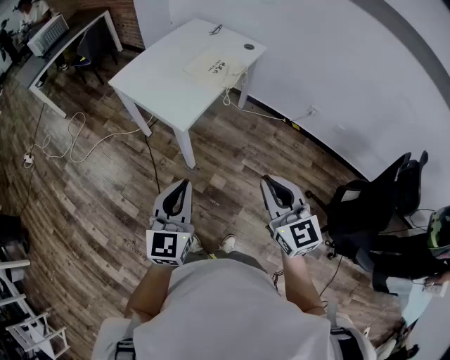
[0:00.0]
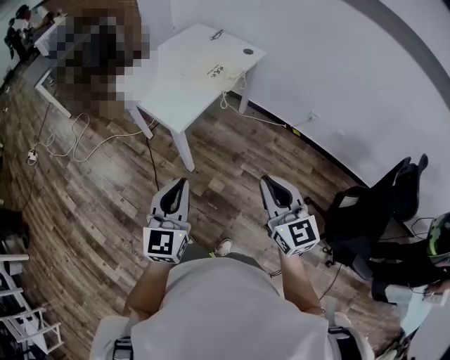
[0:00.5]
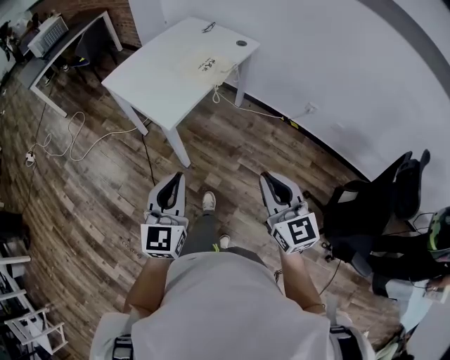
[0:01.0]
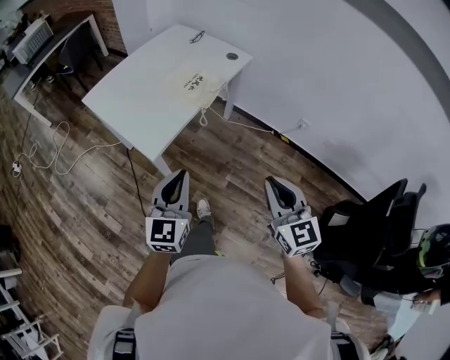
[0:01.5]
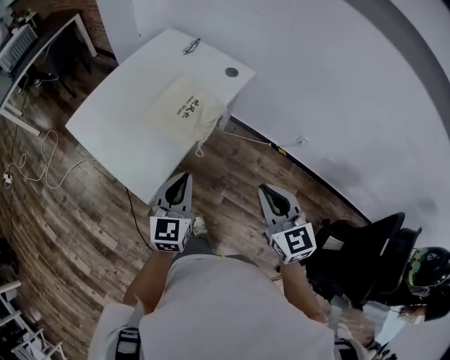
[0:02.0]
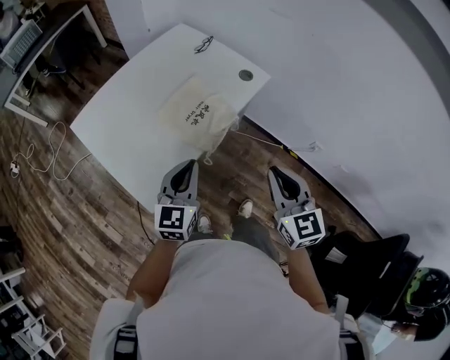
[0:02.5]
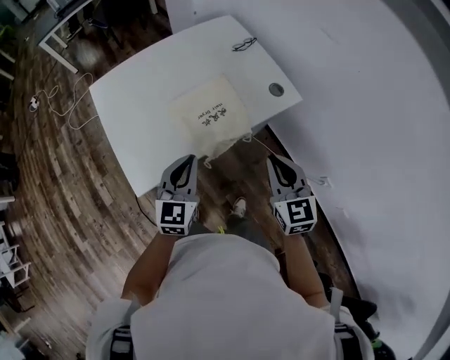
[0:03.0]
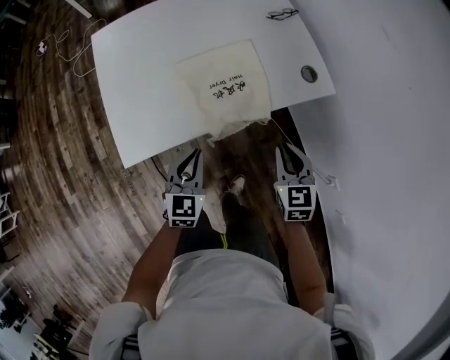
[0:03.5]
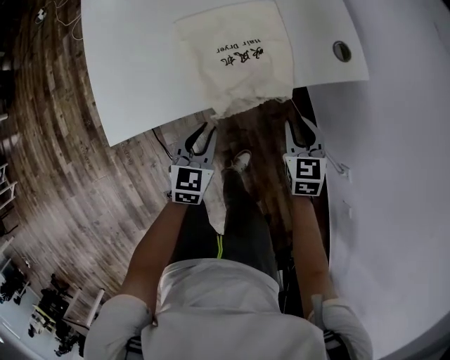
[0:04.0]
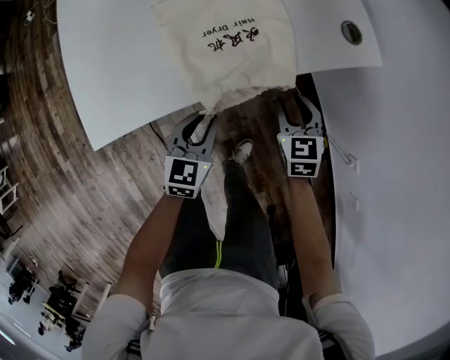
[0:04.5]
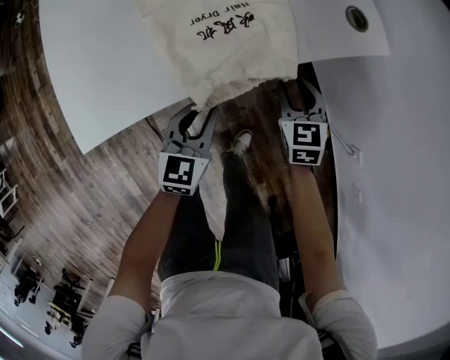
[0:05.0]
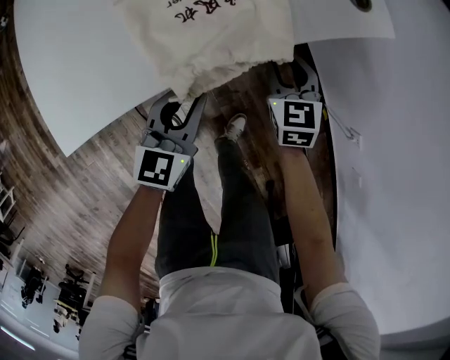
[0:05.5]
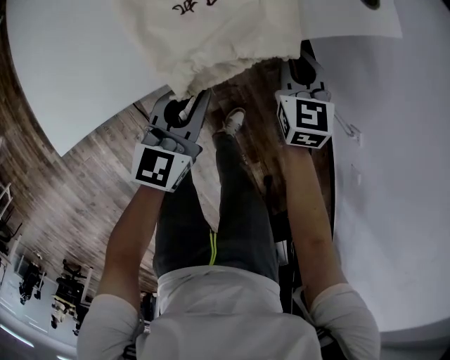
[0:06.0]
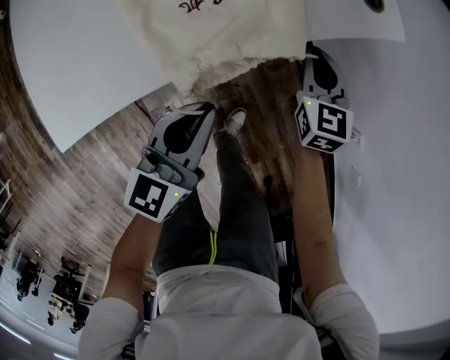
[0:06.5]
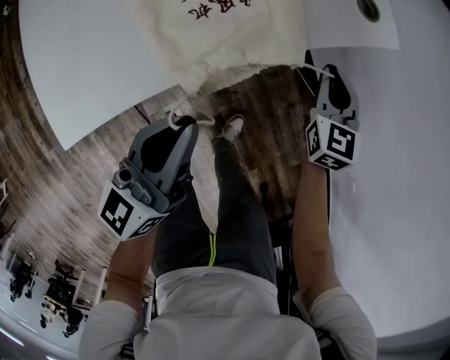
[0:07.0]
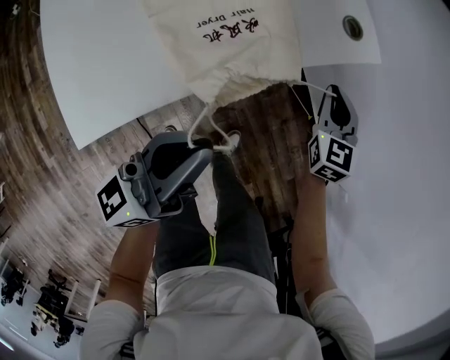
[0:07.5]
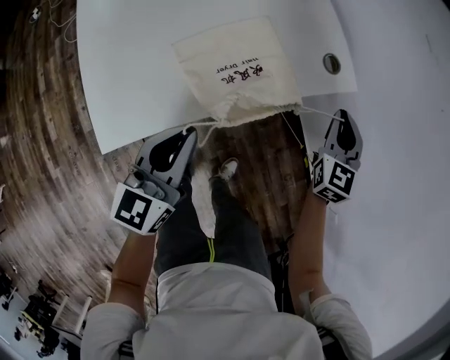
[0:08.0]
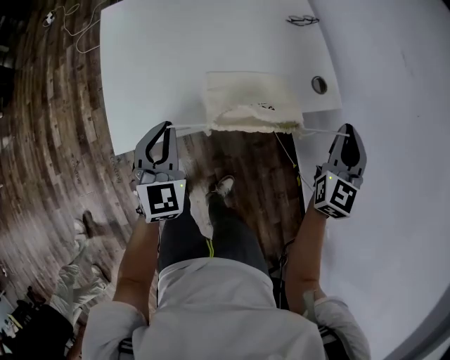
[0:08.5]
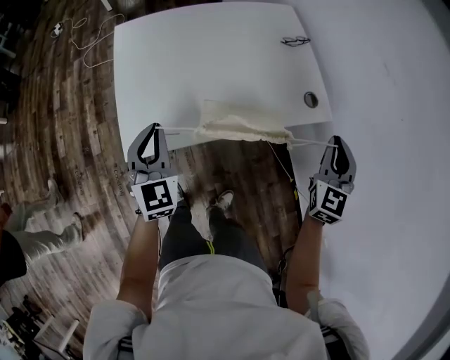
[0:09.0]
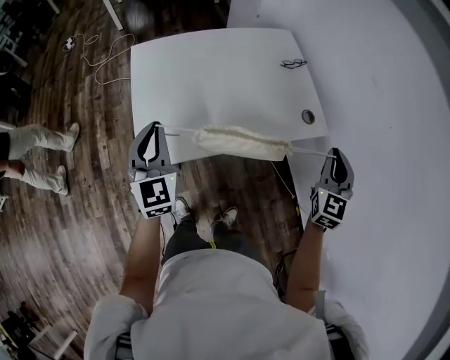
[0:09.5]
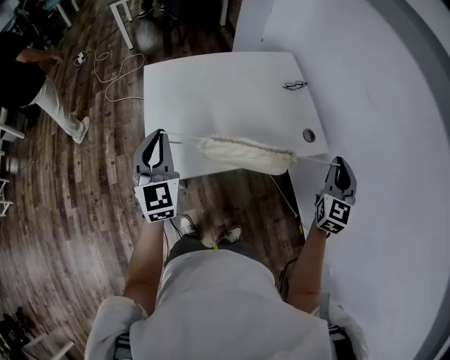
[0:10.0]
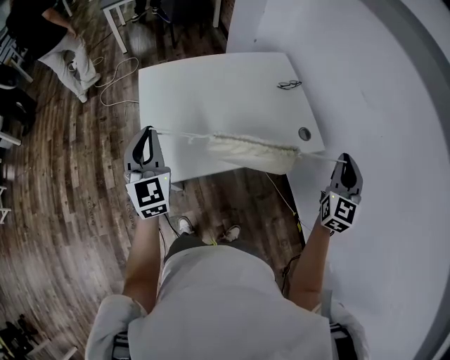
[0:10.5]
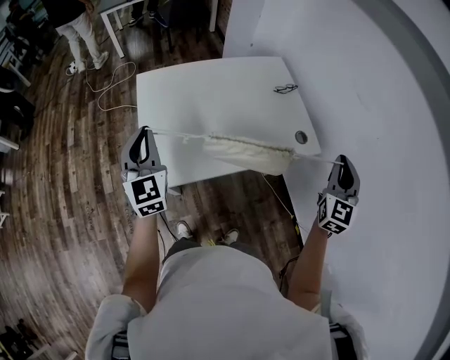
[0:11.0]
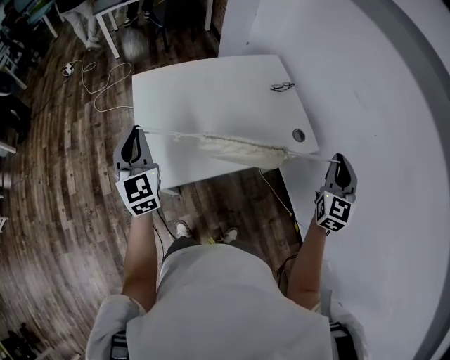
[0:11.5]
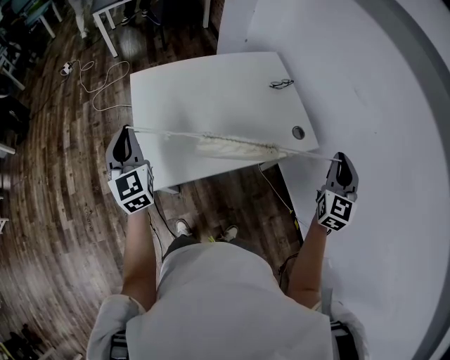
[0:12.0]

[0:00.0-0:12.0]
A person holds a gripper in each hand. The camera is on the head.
0:00.0 to 0:02.0: The left gripper moves forward, roughly 40 cm, while the right gripper is displaced forward and to the right by about 40 cm.
0:02.0 to 0:04.0: The right gripper ends up roughly 50 cm from where it was, and changes its angle by approximately 30 degrees; the left gripper goes some 30 cm downward, and turns by roughly 40 degrees.
0:04.0 to 0:06.0: The left gripper shifts by roughly 10 cm; the right gripper goes roughly 15 cm downward and forward.
0:06.0 to 0:08.0: The two grippers go about 25 cm upward. The right gripper rotates approximately 20 degrees.
0:08.0 to 0:10.0: The left gripper is displaced upward and to the left by about 30 cm, and rotates roughly 50 degrees. The right gripper shifts approximately 25 cm upward.
0:10.0 to 0:12.0: The left gripper shifts approximately 5 cm to the left.

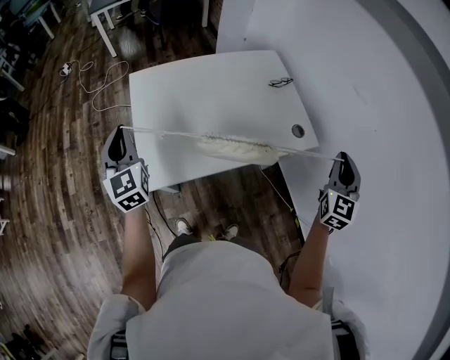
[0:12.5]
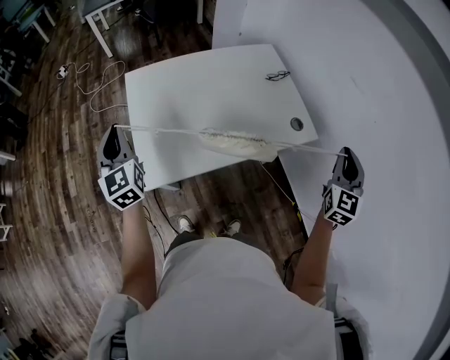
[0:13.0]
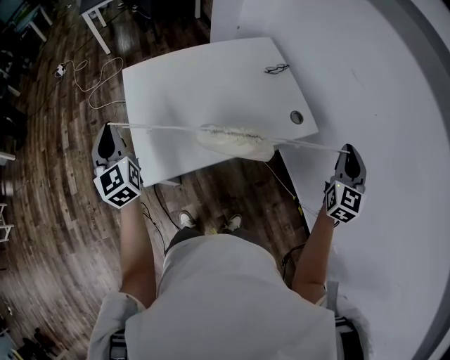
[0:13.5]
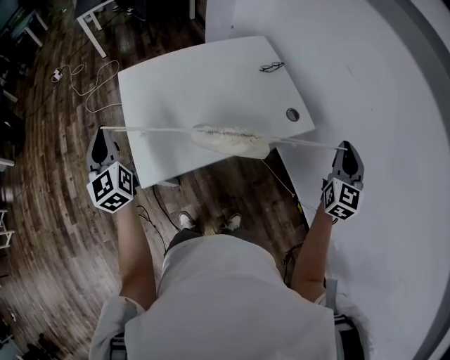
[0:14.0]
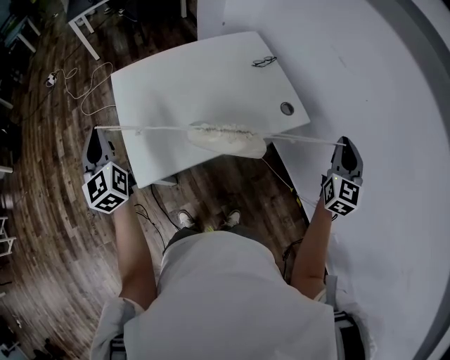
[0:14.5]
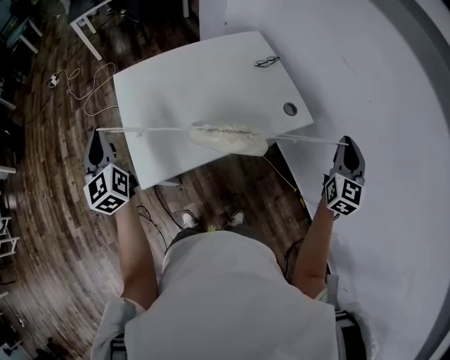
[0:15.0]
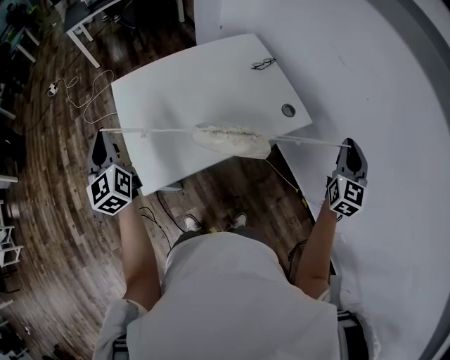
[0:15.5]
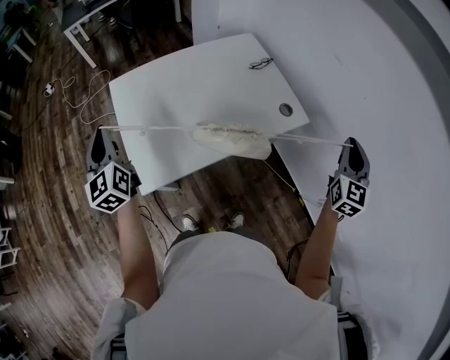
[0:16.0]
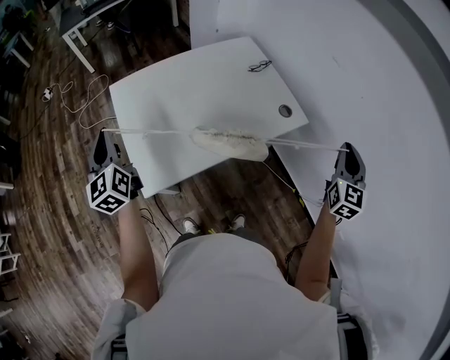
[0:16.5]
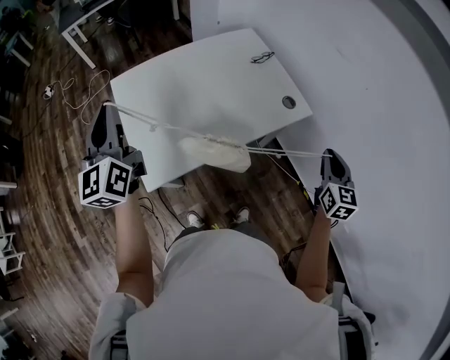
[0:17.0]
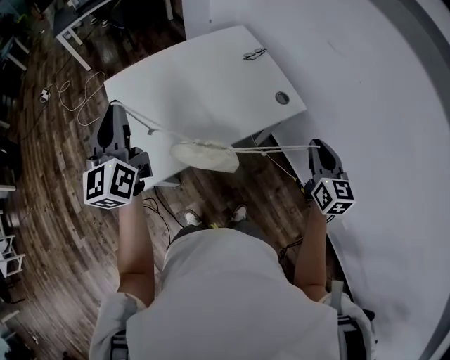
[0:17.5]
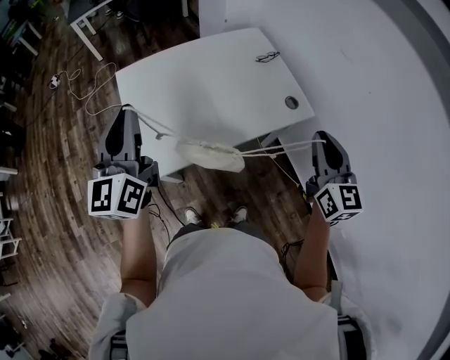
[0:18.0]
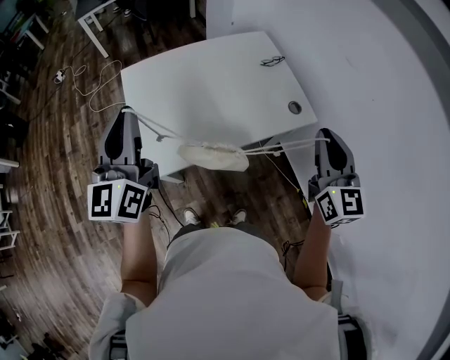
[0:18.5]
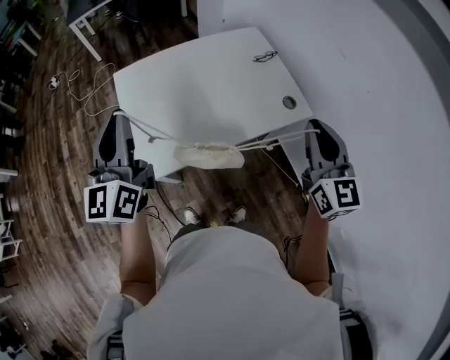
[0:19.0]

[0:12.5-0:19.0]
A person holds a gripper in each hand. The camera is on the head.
0:12.5 to 0:14.5: The right gripper shifts by some 5 cm.
0:14.5 to 0:17.0: The right gripper is displaced downward and backward by roughly 10 cm. The left gripper travels upward and to the right by about 10 cm, and turns by roughly 20 degrees.
0:17.0 to 0:19.0: The left gripper heads backward and to the right, covering approximately 10 cm. Meanwhile the right gripper moves upward and to the left, some 15 cm, and changes its angle by some 30 degrees.

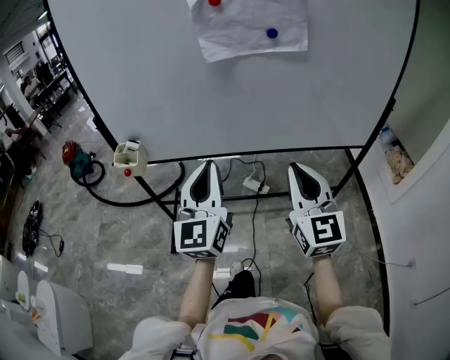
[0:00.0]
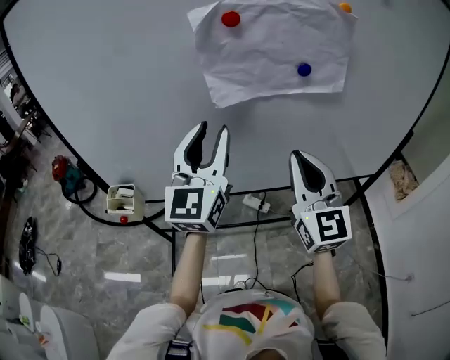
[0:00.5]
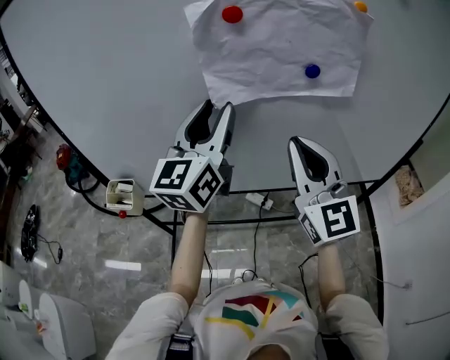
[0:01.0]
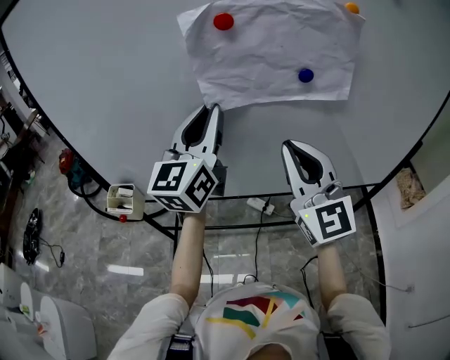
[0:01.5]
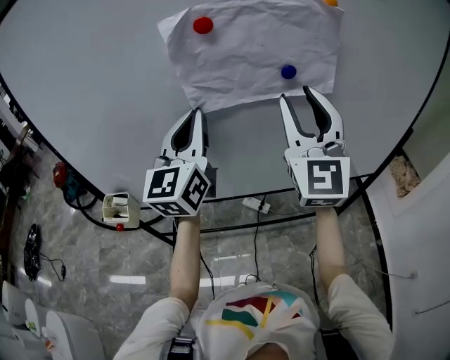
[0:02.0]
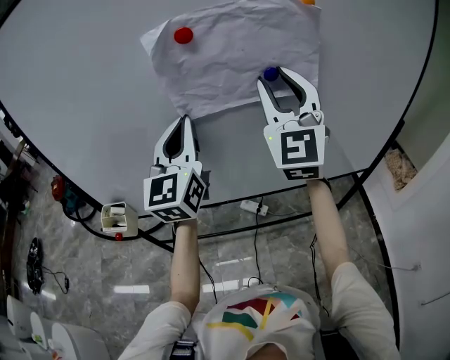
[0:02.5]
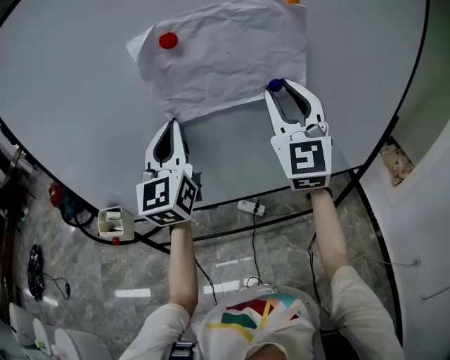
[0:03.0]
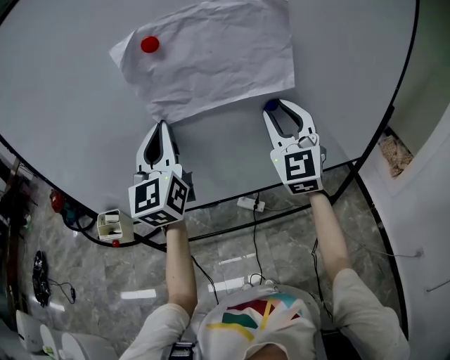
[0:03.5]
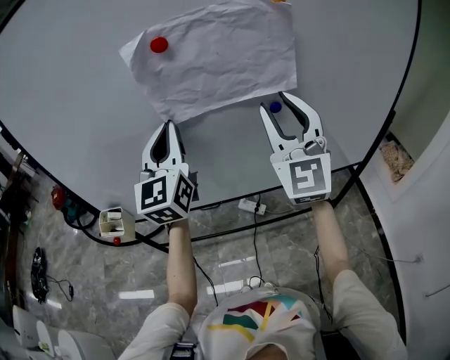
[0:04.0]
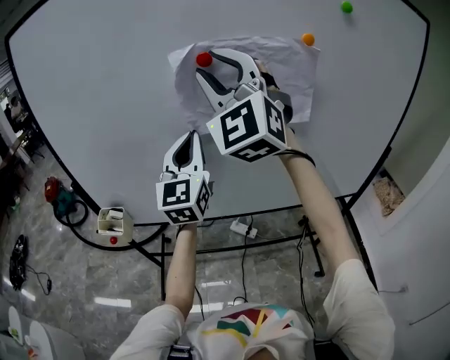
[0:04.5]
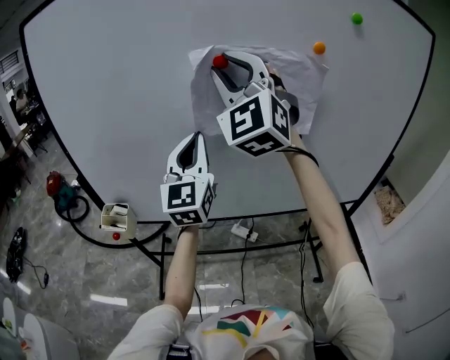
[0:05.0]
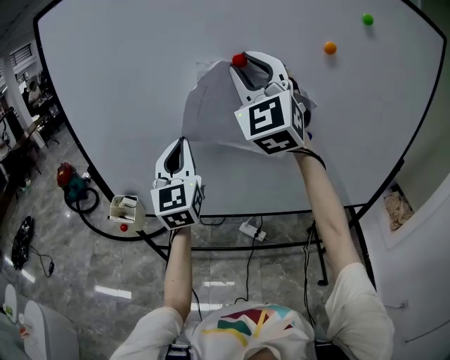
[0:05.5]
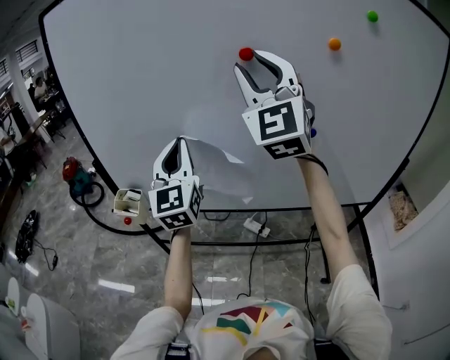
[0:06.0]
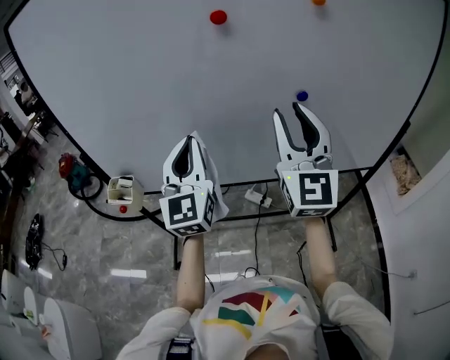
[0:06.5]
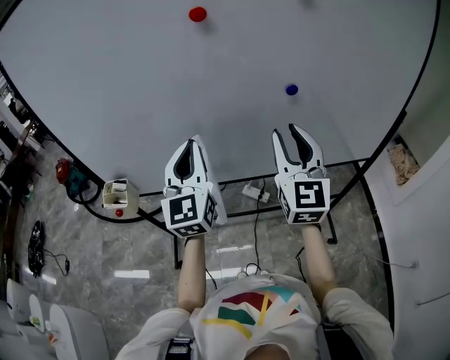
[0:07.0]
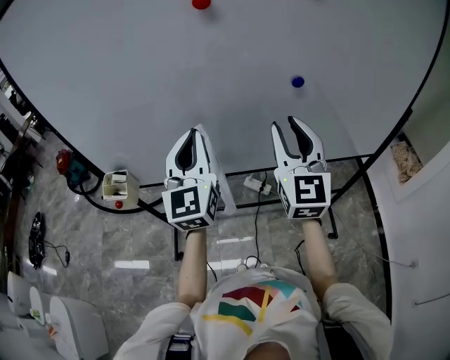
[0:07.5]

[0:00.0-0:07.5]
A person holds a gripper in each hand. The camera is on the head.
0:00.0 to 0:02.0: The grippers both shift forward and upward by some 30 cm. The left gripper opens, then closes once more, while the right gripper swivels some 20 degrees, and opens up.
0:02.0 to 0:04.0: The right gripper moves some 5 cm downward and comes back.
0:04.0 to 0:05.5: The right gripper is displaced to the left and upward by approximately 20 cm. The left gripper shifts about 10 cm to the left.
0:05.5 to 0:07.5: The left gripper heads to the right and downward, covering some 10 cm; the right gripper is displaced downward and to the right by some 30 cm, and rotates about 40 degrees.

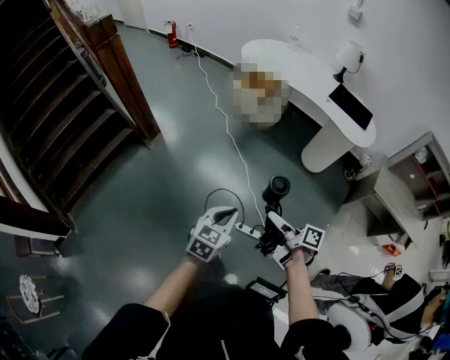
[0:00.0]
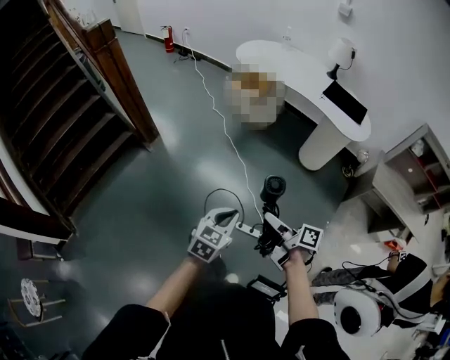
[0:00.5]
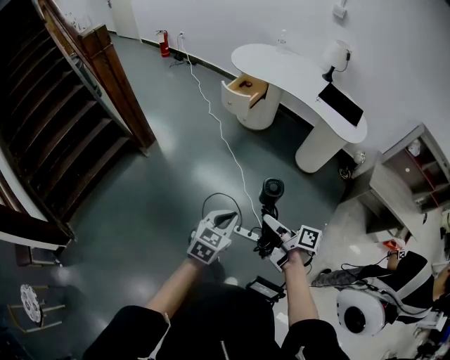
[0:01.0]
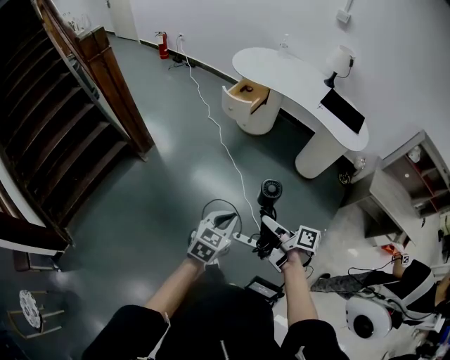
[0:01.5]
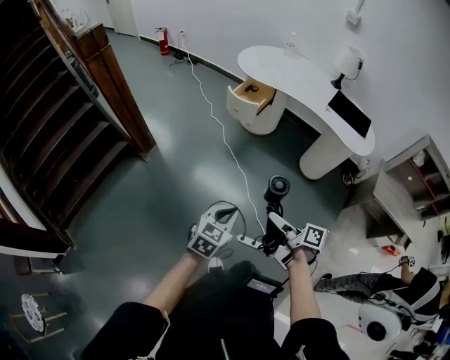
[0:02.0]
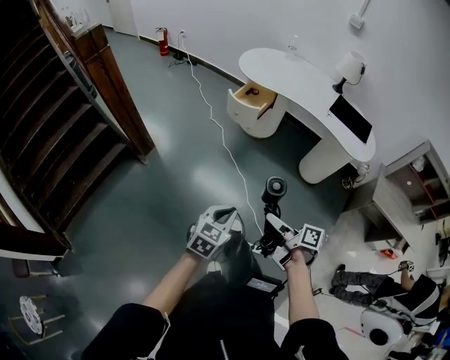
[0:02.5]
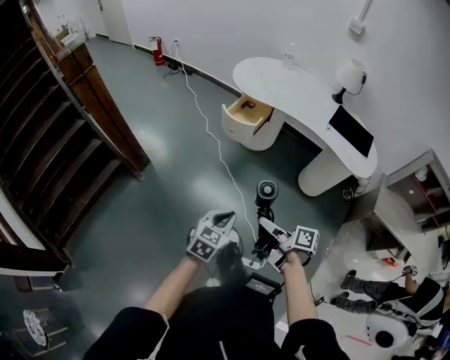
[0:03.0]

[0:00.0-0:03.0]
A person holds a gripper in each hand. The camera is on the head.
0:00.0 to 0:01.5: The grippers move only a little.
0:01.5 to 0:03.0: The grippers both shift forward by about 20 cm.
